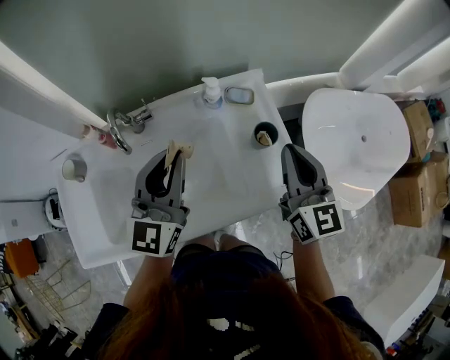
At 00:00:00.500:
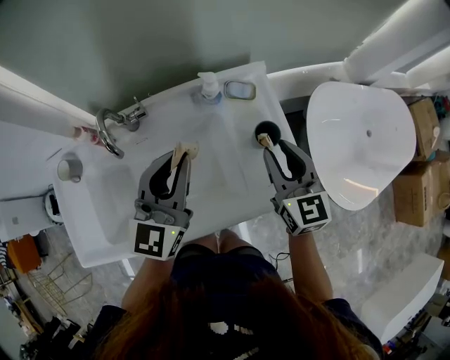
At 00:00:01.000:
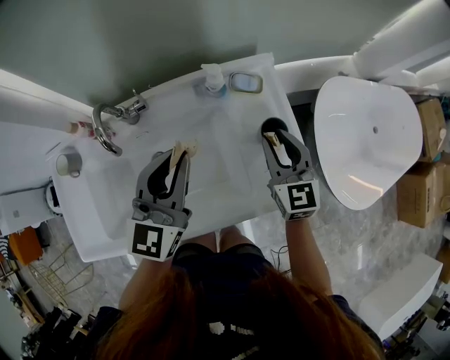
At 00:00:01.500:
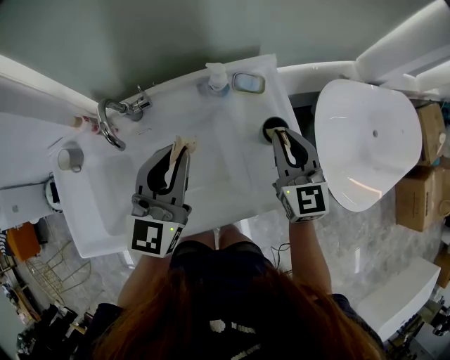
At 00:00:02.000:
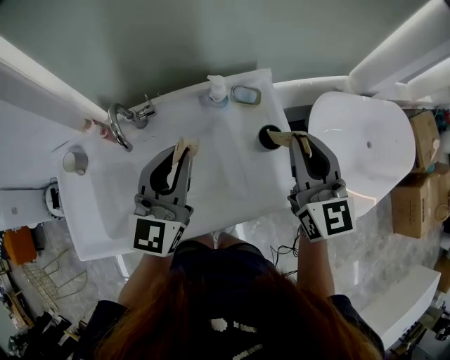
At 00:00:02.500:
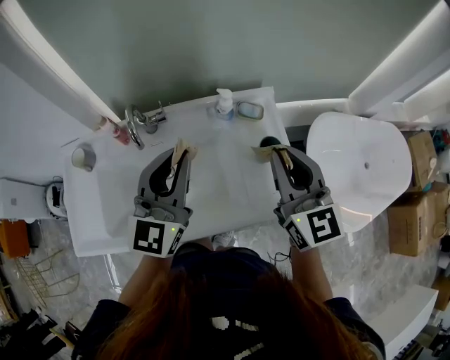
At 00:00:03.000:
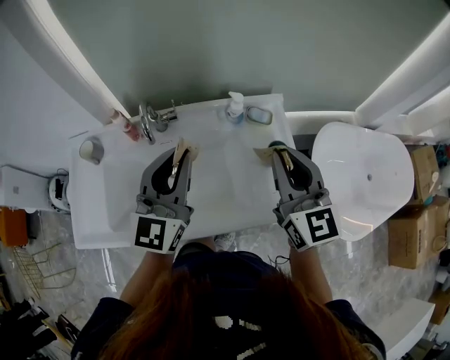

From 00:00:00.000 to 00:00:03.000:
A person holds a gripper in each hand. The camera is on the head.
From 00:00:00.000 to 00:00:01.500: The right gripper moves downward and forward, roughly 10 cm, and opens, then closes once more.
From 00:00:01.500 to 00:00:03.000: The right gripper heads upward and backward, covering approximately 15 cm. Meanwhile the left gripper is displaced upward and backward by some 10 cm.

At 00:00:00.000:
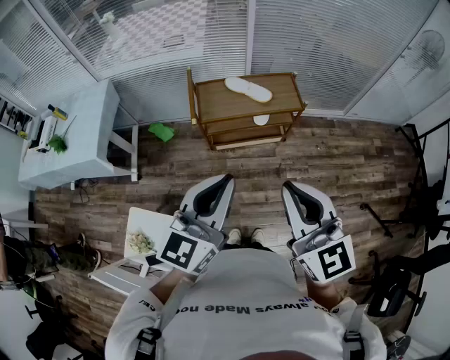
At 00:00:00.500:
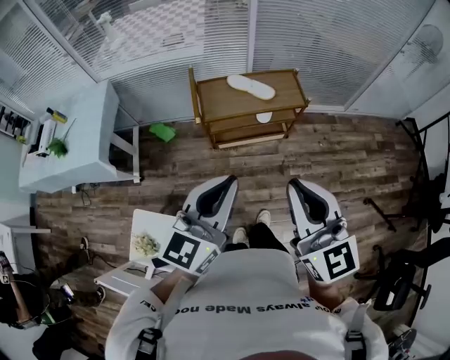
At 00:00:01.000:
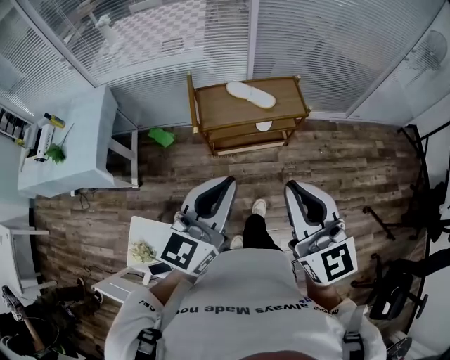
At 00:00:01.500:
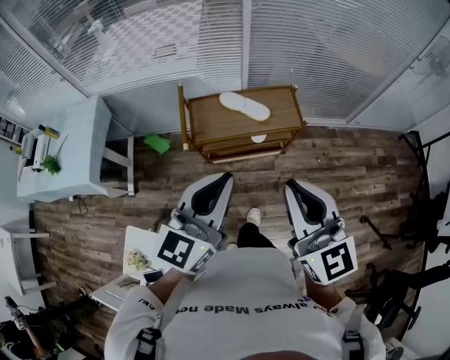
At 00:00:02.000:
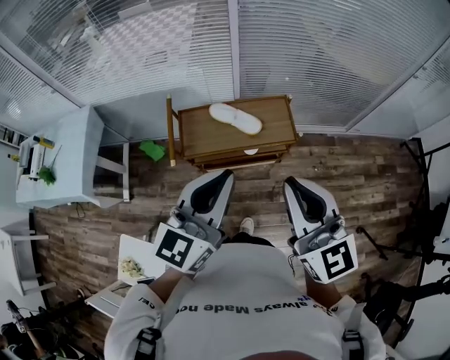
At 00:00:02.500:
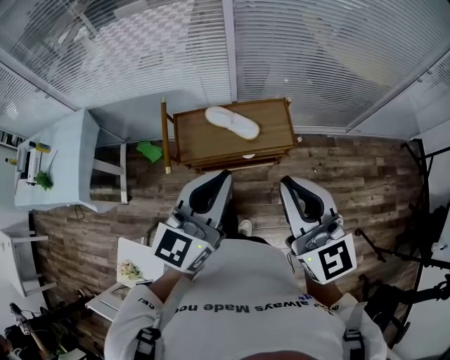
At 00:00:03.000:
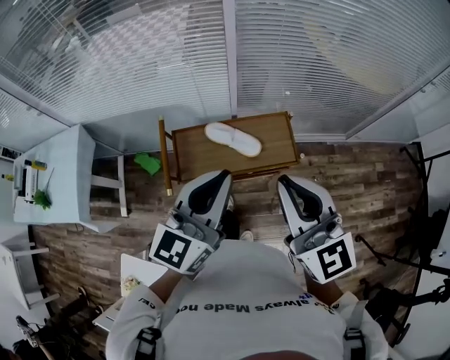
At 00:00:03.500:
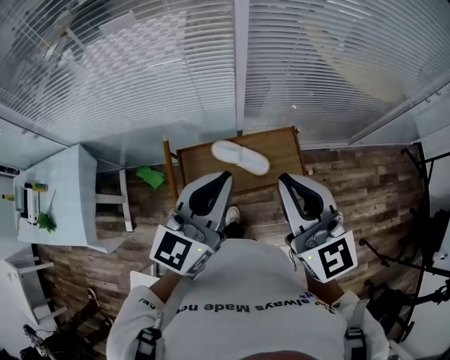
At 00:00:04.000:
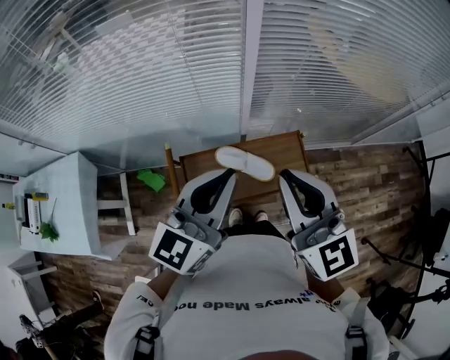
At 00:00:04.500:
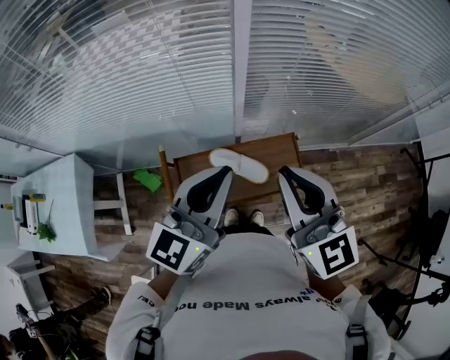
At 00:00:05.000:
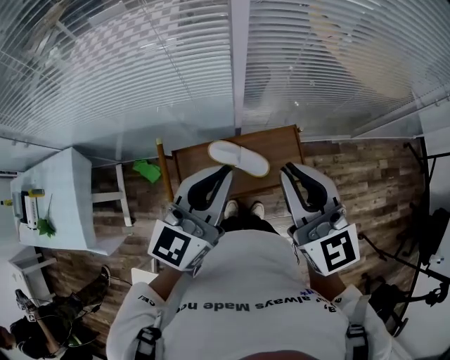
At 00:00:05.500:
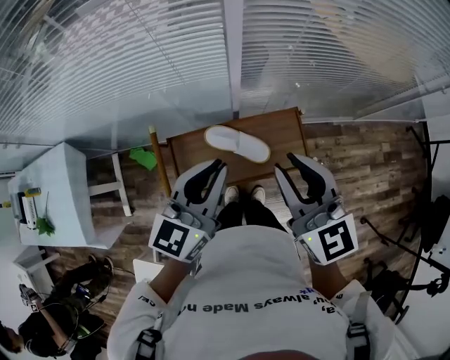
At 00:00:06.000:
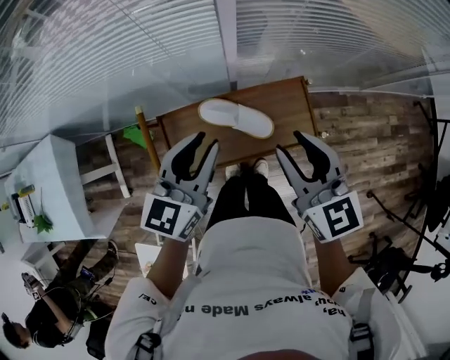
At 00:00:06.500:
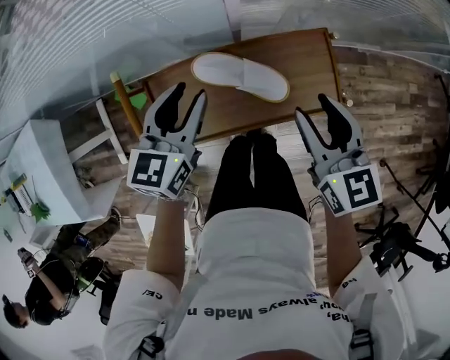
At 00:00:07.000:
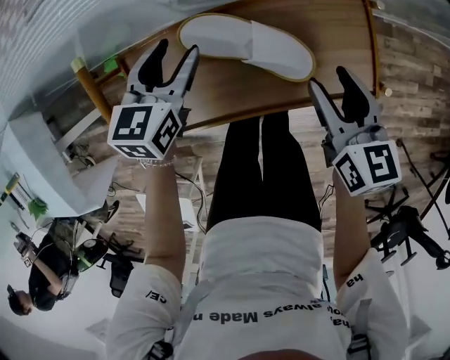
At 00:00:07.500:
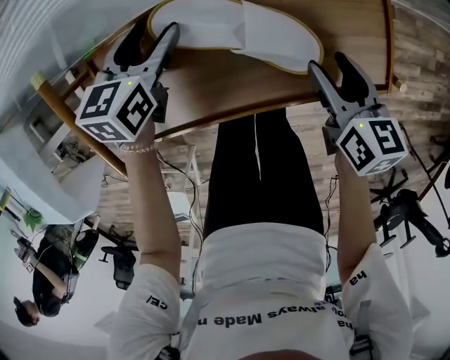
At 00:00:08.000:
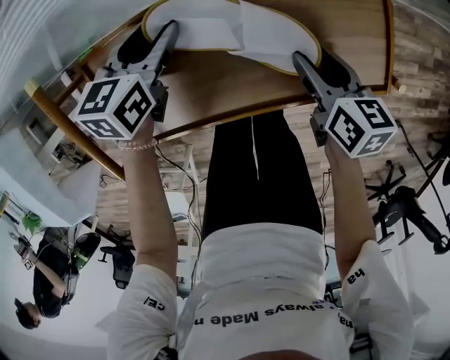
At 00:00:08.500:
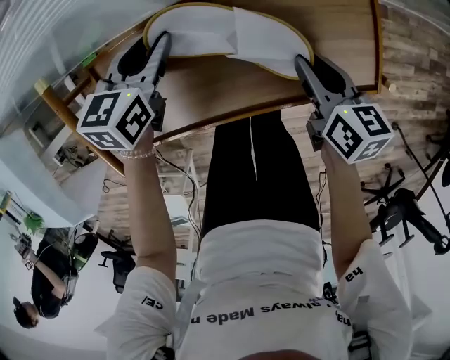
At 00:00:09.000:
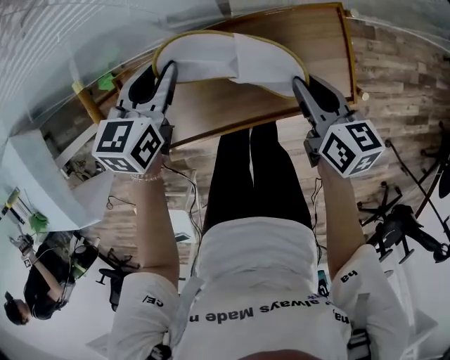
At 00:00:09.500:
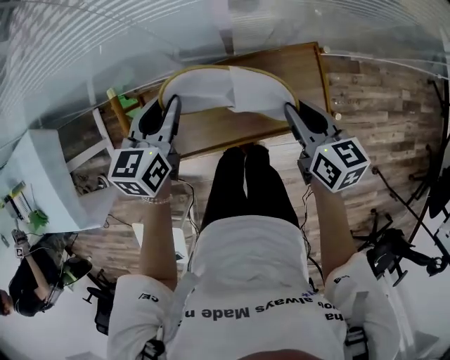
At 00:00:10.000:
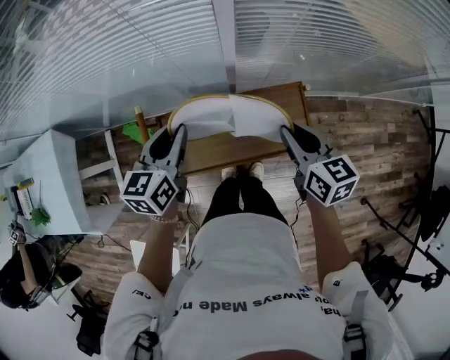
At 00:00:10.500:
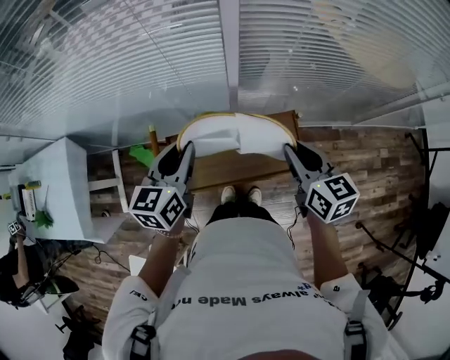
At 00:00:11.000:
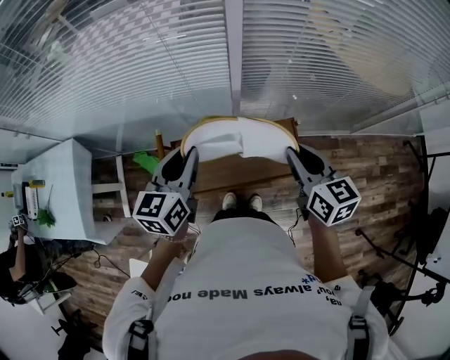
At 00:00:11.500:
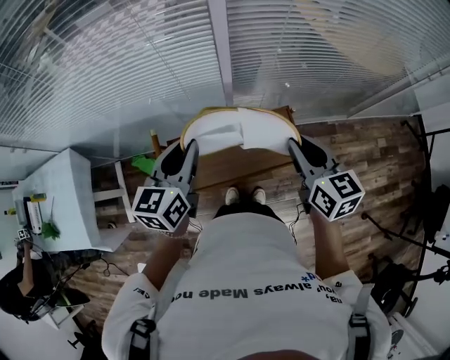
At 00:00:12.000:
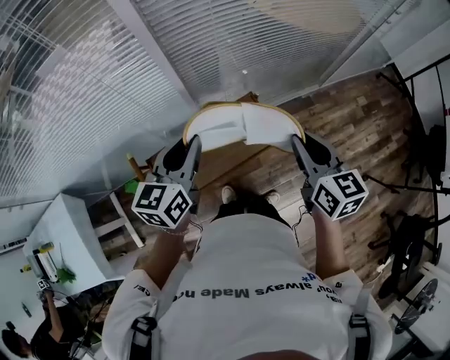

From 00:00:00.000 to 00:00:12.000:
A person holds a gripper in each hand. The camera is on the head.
From 00:00:00.000 to 00:00:02.000: The grippers both shift forward by some 25 cm.
From 00:00:02.000 to 00:00:04.000: The grippers both shift forward by approximately 30 cm.
From 00:00:04.000 to 00:00:06.000: Both grippers travel together downward, roughly 20 cm. The right gripper rotates some 20 degrees, and opens.
From 00:00:06.000 to 00:00:08.000: Both grippers travel together downward, about 40 cm. The left gripper swivels some 30 degrees, and opens its fingers. The right gripper turns by approximately 40 degrees.
From 00:00:08.000 to 00:00:10.000: Both grippers move upward, roughly 35 cm. The left gripper closes up; the right gripper changes its angle by about 20 degrees, and closes its fingers.
From 00:00:10.000 to 00:00:12.000: The left gripper is displaced upward and to the right by roughly 20 cm, and rotates approximately 20 degrees; the right gripper shifts about 20 cm upward, backward and to the right, and changes its angle by about 30 degrees.

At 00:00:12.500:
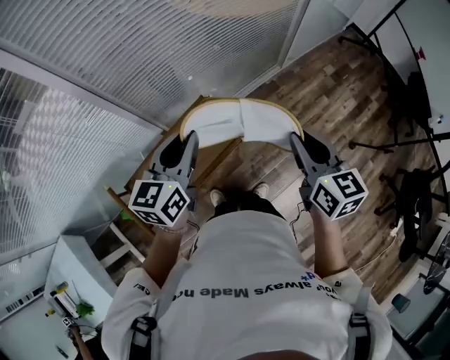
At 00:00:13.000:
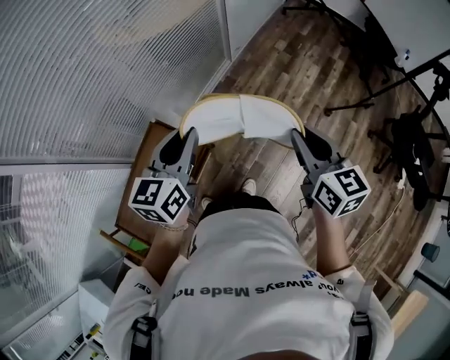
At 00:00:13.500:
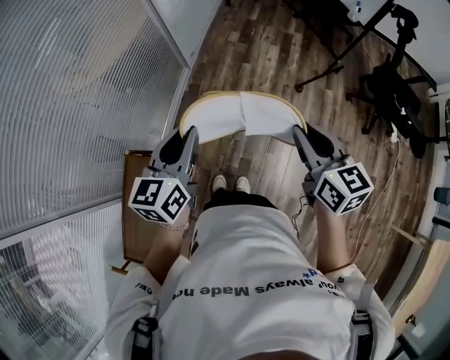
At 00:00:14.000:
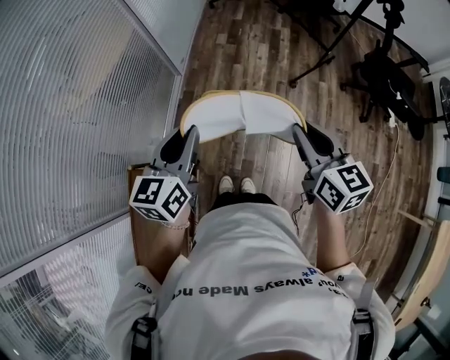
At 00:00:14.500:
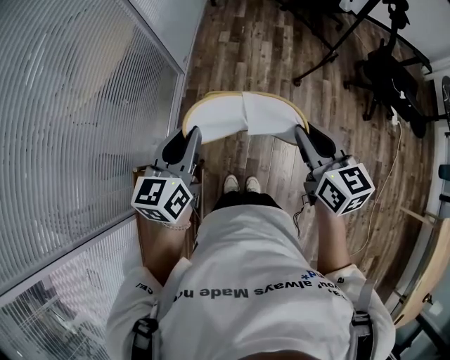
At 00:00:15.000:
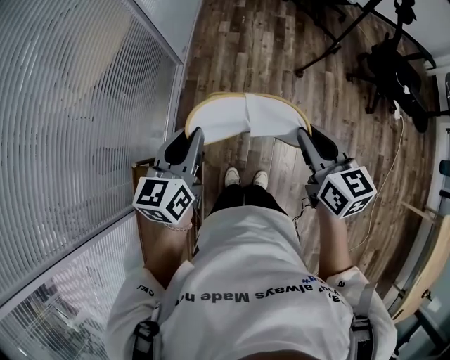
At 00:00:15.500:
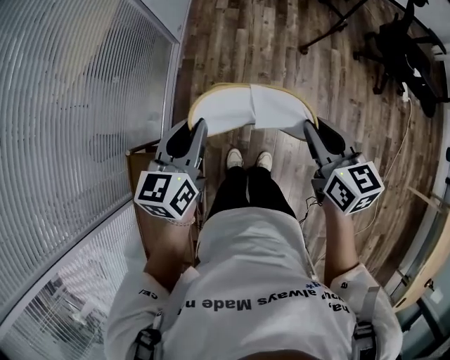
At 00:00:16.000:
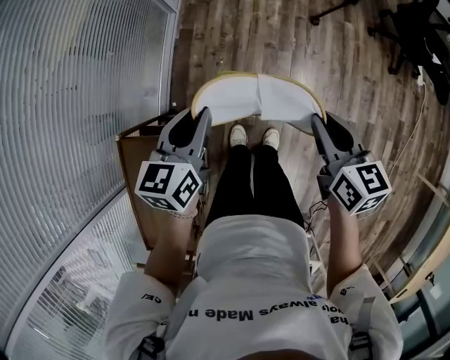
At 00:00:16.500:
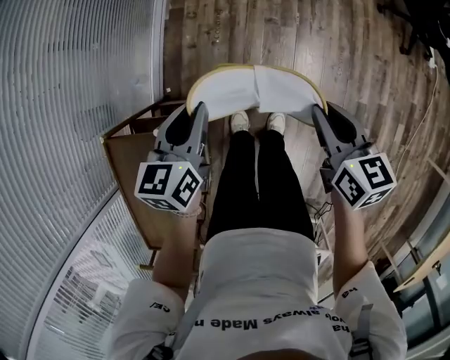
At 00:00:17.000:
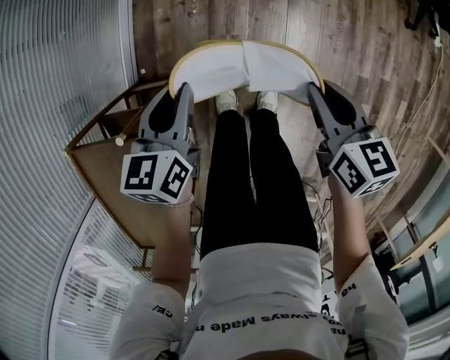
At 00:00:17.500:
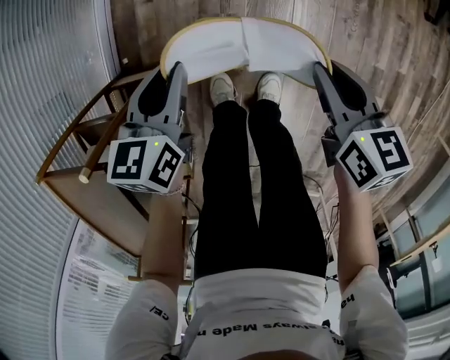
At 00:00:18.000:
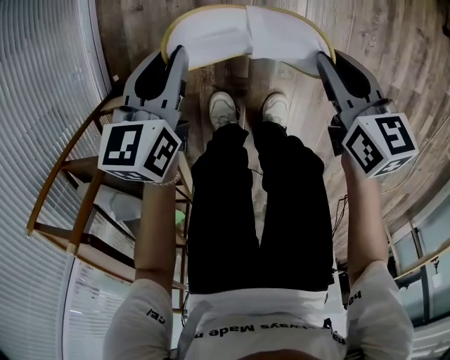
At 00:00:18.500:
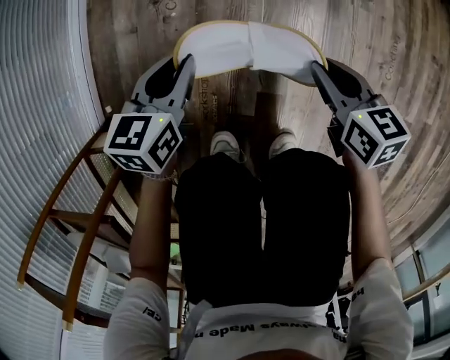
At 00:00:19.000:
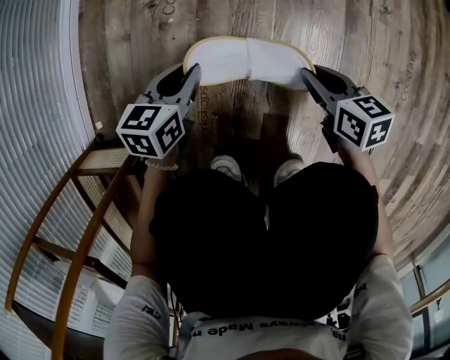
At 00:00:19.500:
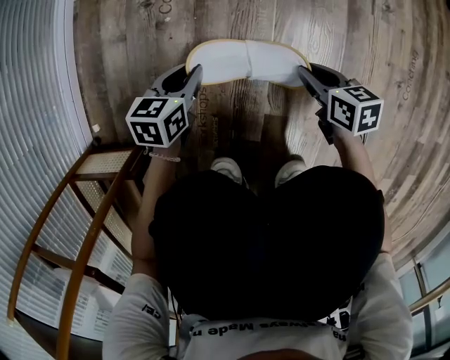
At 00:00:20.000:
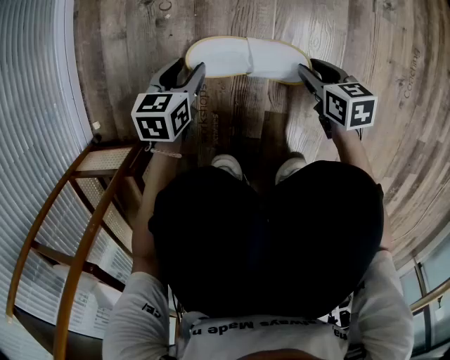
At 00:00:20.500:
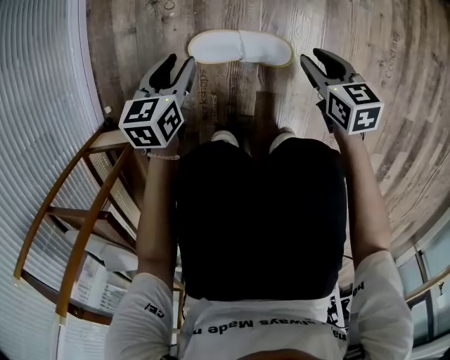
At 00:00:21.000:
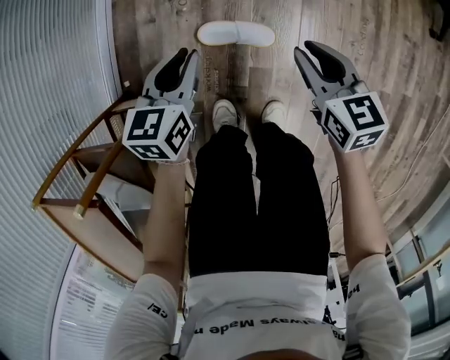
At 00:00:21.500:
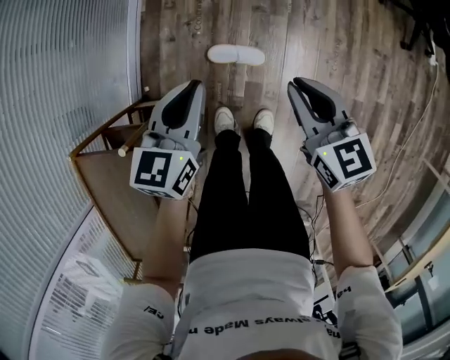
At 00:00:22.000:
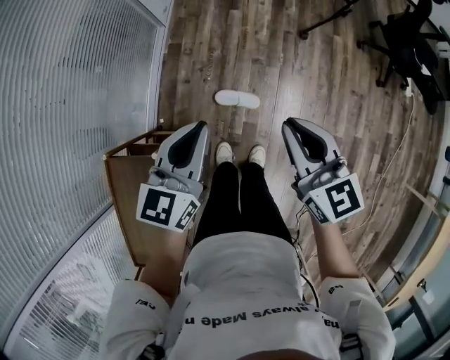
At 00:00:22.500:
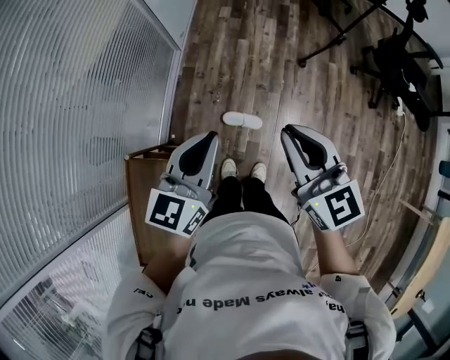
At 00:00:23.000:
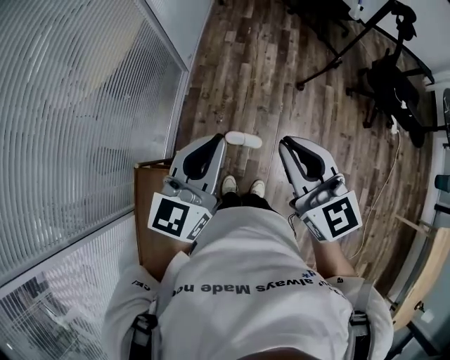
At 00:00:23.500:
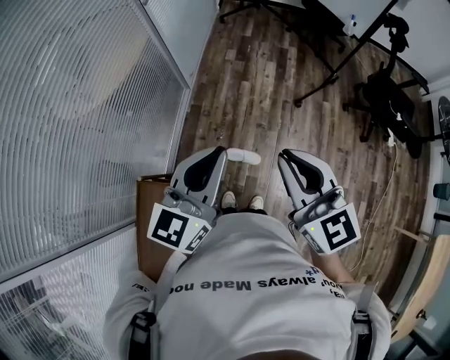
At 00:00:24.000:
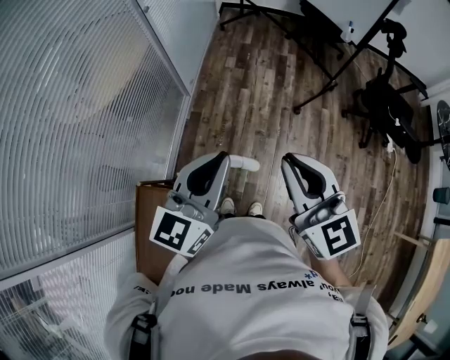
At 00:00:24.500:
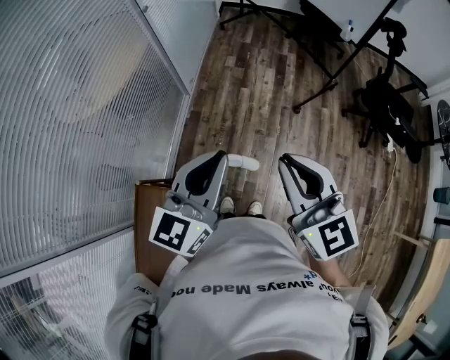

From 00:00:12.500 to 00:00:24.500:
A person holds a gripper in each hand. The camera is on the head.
From 00:00:12.500 to 00:00:14.500: The right gripper shifts by some 30 cm, and changes its angle by approximately 40 degrees. Meanwhile the left gripper changes place by about 40 cm, and swivels approximately 40 degrees.
From 00:00:14.500 to 00:00:16.500: The grippers both shift downward by approximately 20 cm. The left gripper swivels roughly 20 degrees. The right gripper rotates about 20 degrees.
From 00:00:16.500 to 00:00:18.500: The grippers both shift downward by approximately 50 cm.
From 00:00:18.500 to 00:00:20.500: The left gripper moves some 20 cm downward and comes back, and opens. Meanwhile the right gripper travels downward by about 10 cm.
From 00:00:20.500 to 00:00:22.500: Both grippers move upward, approximately 80 cm. The right gripper points its fingers some 30 degrees further upward, and closes up. Meanwhile the left gripper tips its fingers upward by some 30 degrees, and closes up.
From 00:00:22.500 to 00:00:24.500: The two grippers go approximately 10 cm upward.
